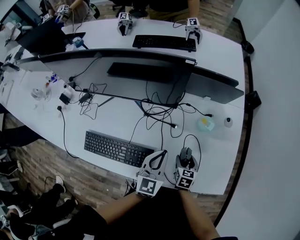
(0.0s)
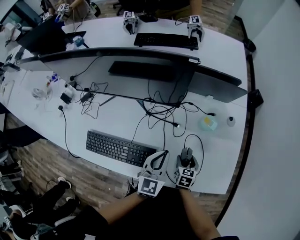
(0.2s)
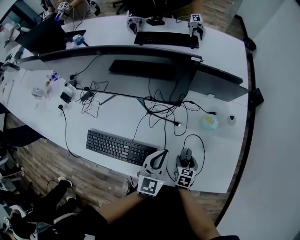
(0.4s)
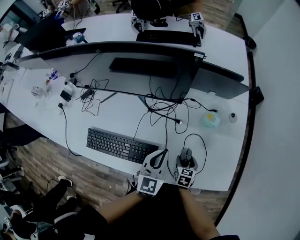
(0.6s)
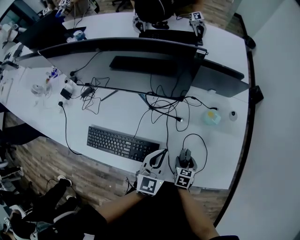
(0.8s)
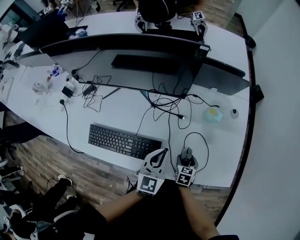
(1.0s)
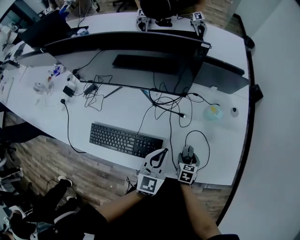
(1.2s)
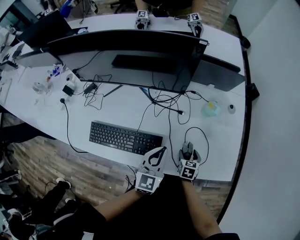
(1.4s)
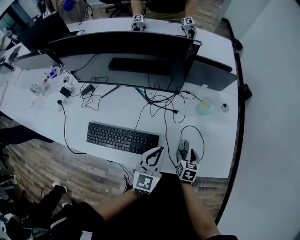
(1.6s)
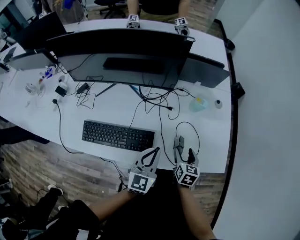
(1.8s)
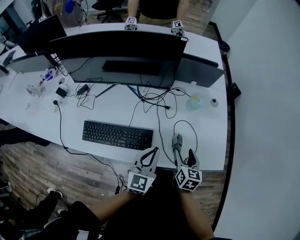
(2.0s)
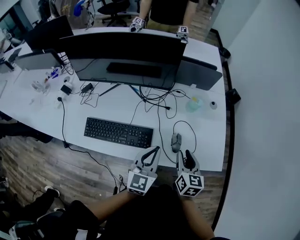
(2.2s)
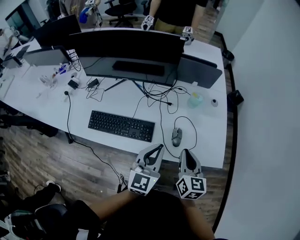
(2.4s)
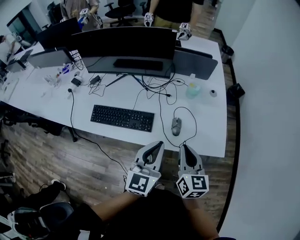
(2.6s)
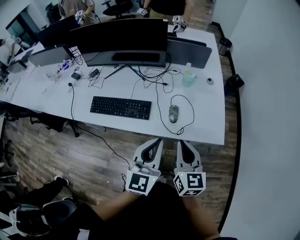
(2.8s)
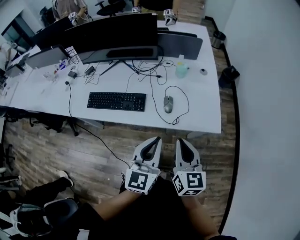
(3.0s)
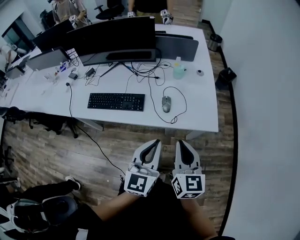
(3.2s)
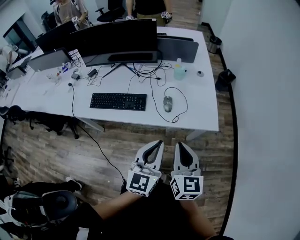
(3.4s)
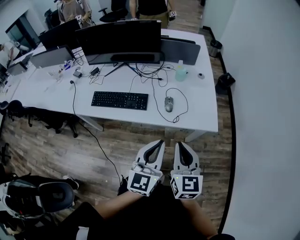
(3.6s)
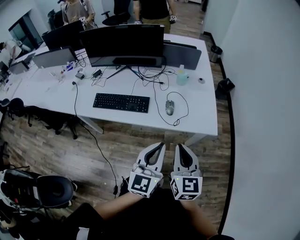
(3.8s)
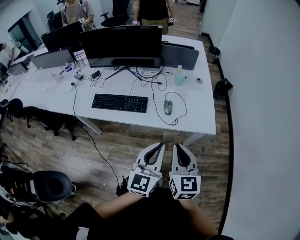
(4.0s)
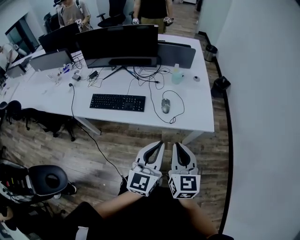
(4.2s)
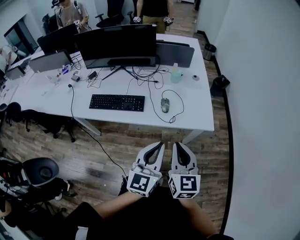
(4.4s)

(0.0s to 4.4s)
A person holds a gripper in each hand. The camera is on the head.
0.0s - 1.4s: Both grippers travel together backward, about 5 cm.
1.4s - 3.0s: The right gripper is displaced upward and backward by approximately 40 cm, angles its fingers upward, by roughly 40 degrees, and closes; the left gripper is displaced backward, upward and to the right by approximately 35 cm.
3.0s - 4.4s: The grippers both shift backward by some 10 cm.

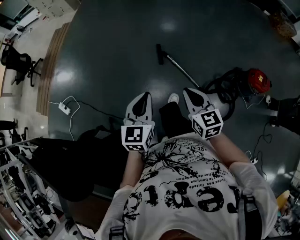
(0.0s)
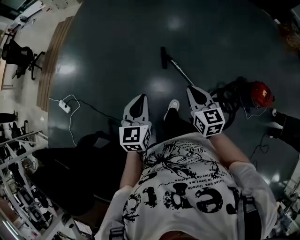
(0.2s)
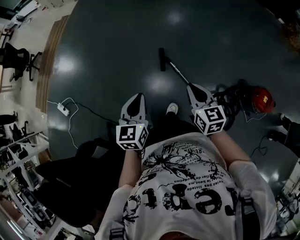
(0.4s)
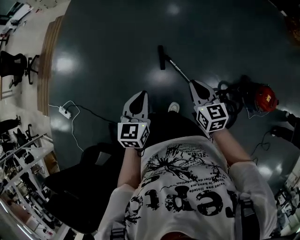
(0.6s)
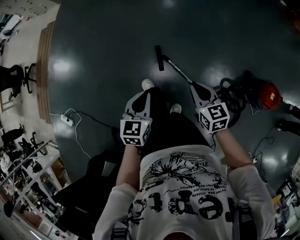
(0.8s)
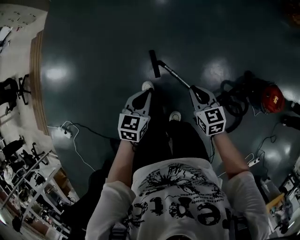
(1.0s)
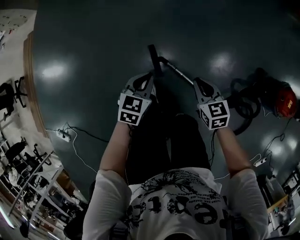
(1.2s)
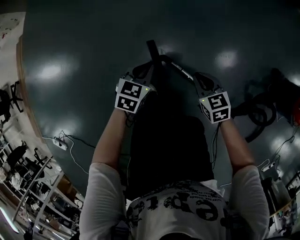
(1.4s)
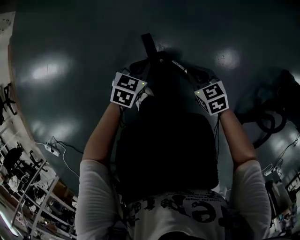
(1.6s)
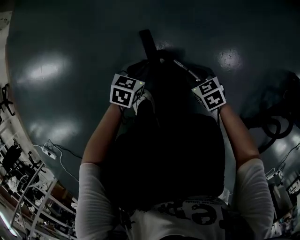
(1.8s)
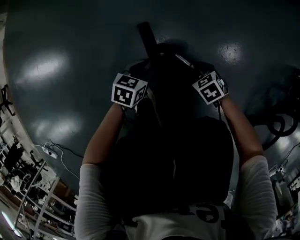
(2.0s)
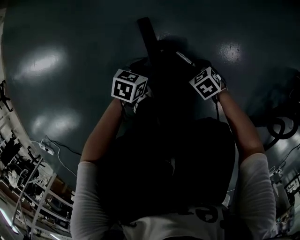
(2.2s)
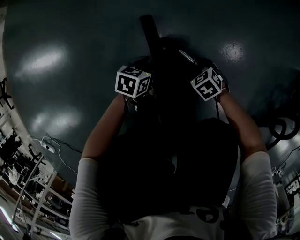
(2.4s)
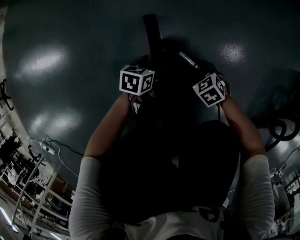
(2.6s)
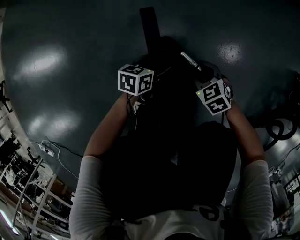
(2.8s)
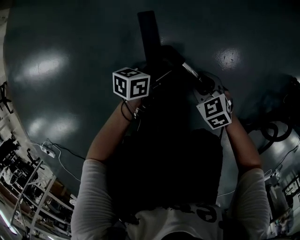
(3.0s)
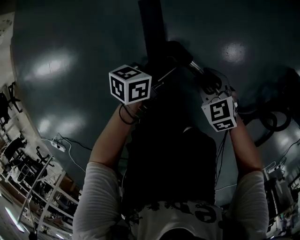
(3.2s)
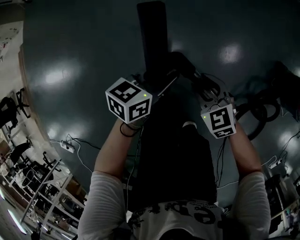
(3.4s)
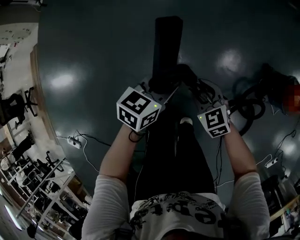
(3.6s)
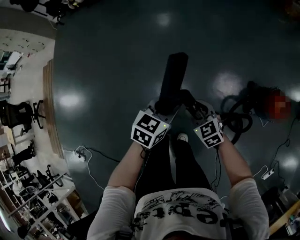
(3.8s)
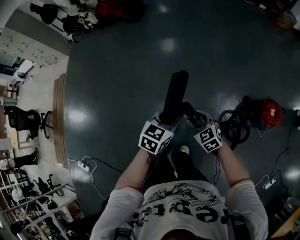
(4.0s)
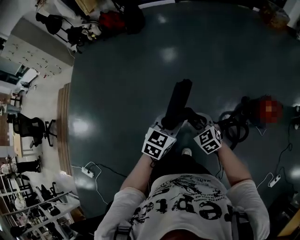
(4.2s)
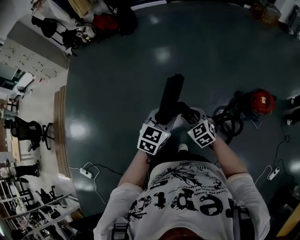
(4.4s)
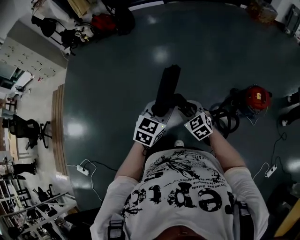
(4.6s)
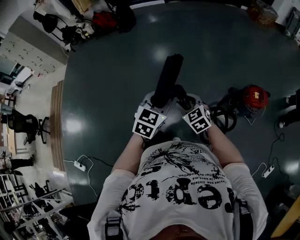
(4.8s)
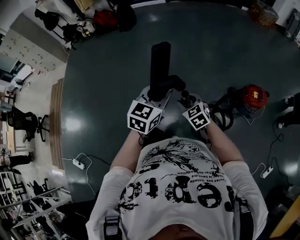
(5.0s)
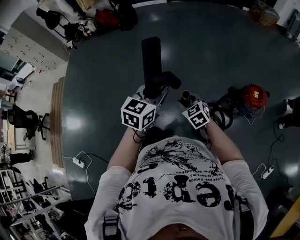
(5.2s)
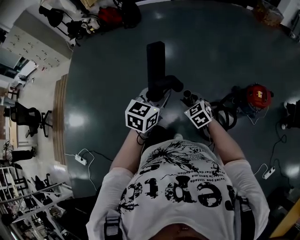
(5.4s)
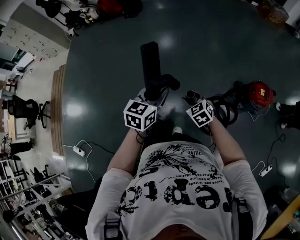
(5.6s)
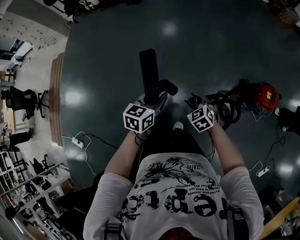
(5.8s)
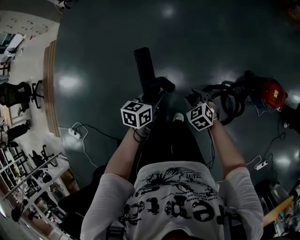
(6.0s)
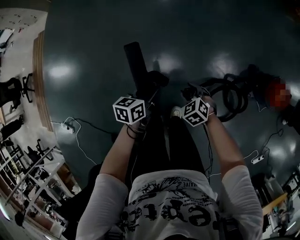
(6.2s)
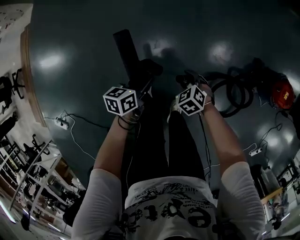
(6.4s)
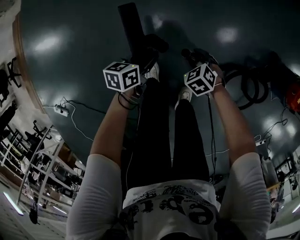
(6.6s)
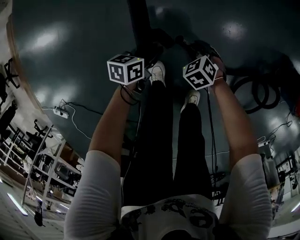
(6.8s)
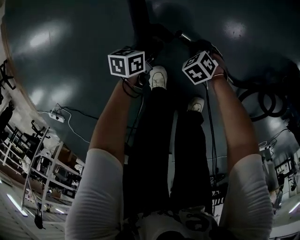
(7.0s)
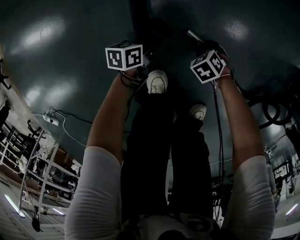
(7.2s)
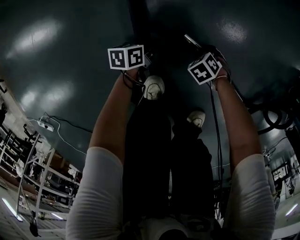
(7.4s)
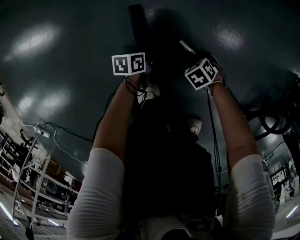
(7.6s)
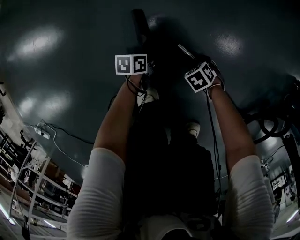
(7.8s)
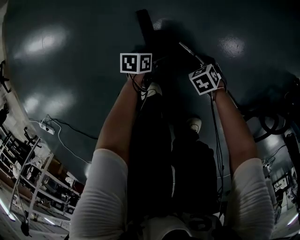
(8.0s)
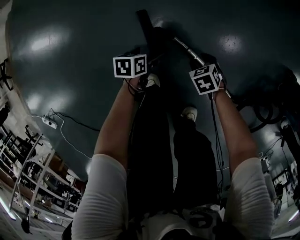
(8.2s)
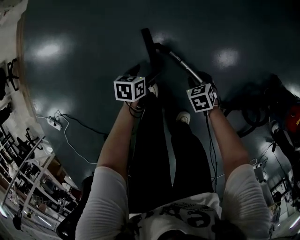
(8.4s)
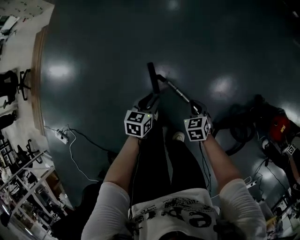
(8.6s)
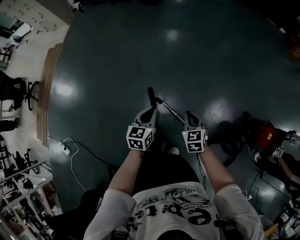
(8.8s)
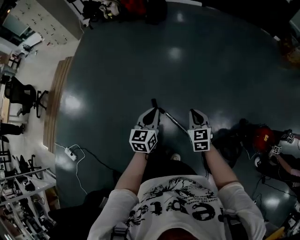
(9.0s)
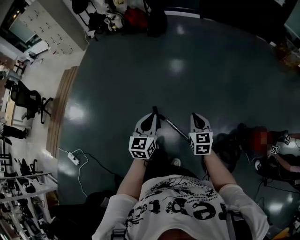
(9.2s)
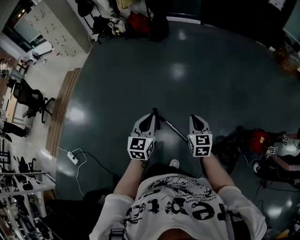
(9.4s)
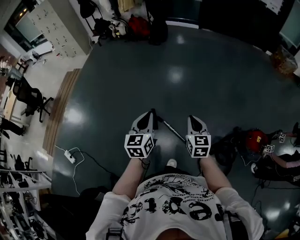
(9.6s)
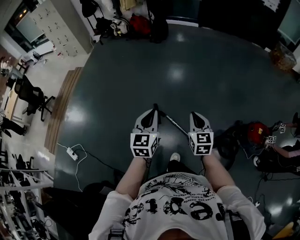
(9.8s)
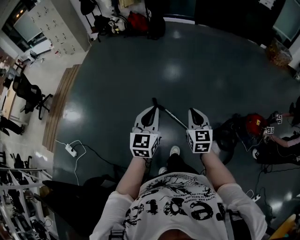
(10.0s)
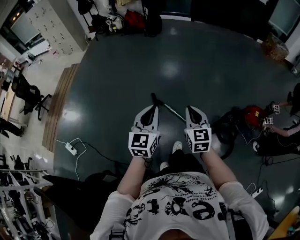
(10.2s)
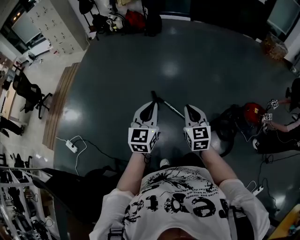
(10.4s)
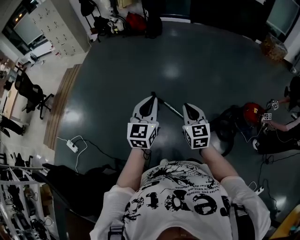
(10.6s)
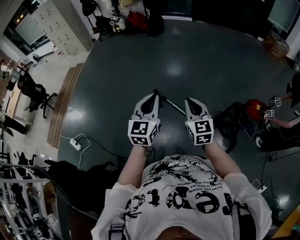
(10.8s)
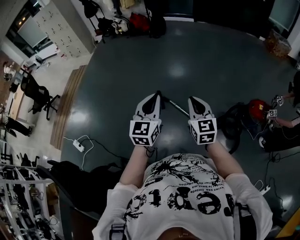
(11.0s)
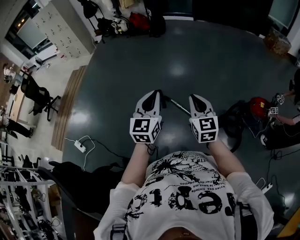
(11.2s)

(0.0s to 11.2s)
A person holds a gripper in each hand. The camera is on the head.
0.0s - 1.6s: Both grippers are carried forward, about 60 cm. The grippers both shift downward by approximately 80 cm. The right gripper turns by approximately 30 degrees. The left gripper tips its fingers downward by some 30 degrees.
1.6s - 3.2s: The right gripper travels downward and back again, roughly 20 cm each way, and opens. The left gripper travels downward and back again, approximately 20 cm each way, swivels about 40 degrees, and opens, then closes once more.
3.2s - 4.8s: Both grippers travel together upward, roughly 70 cm. The left gripper rotates around the line of its fingers by approximately 50 degrees, clockwise from behind.
4.8s - 6.4s: The left gripper travels downward and to the left by about 50 cm, and rotates around the line of its fingers by about 50 degrees, counterclockwise from behind. Meanwhile the right gripper moves downward, roughly 40 cm, and tilts its fingers some 30 degrees downward.
6.4s - 8.0s: The two grippers go about 50 cm downward. The left gripper swivels approximately 20 degrees, and opens.
8.0s - 9.6s: Both grippers travel together upward, some 1 m. The left gripper tilts its fingers roughly 40 degrees upward, and closes, while the right gripper tips its fingers upward by about 60 degrees, and closes up.
9.6s - 11.2s: Both grippers travel together backward, roughly 25 cm.

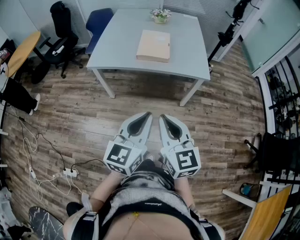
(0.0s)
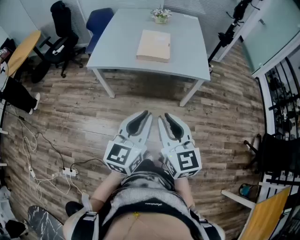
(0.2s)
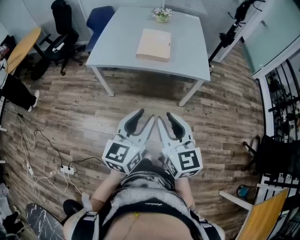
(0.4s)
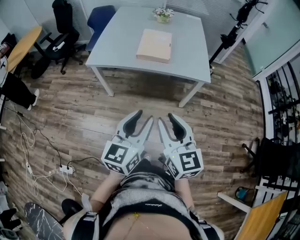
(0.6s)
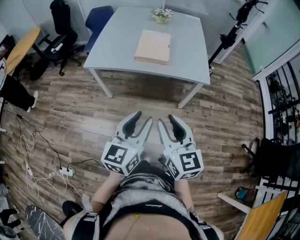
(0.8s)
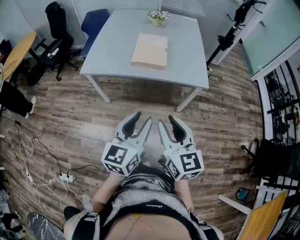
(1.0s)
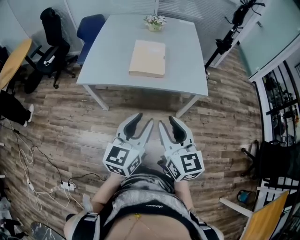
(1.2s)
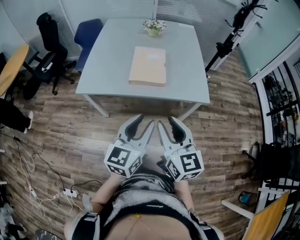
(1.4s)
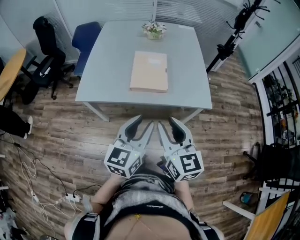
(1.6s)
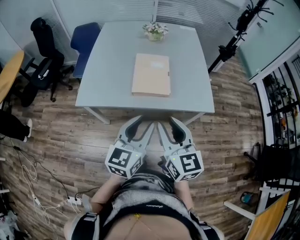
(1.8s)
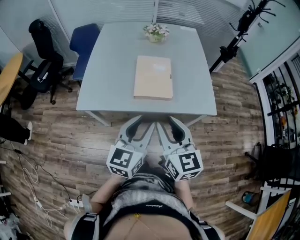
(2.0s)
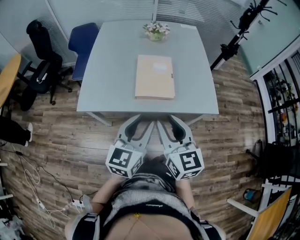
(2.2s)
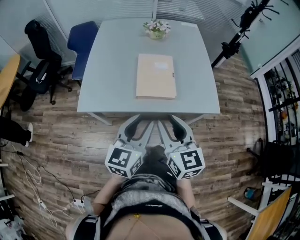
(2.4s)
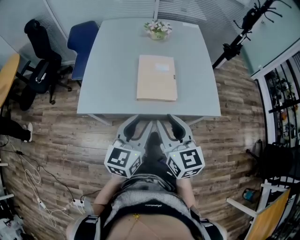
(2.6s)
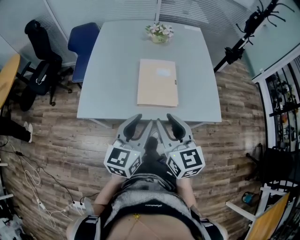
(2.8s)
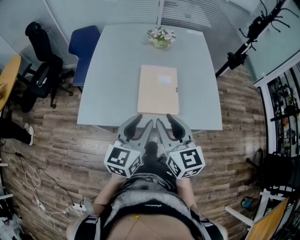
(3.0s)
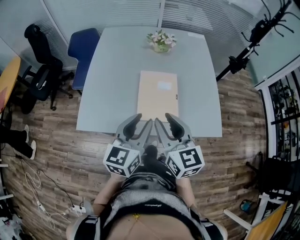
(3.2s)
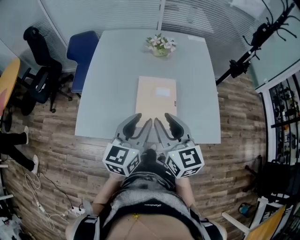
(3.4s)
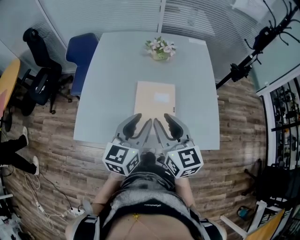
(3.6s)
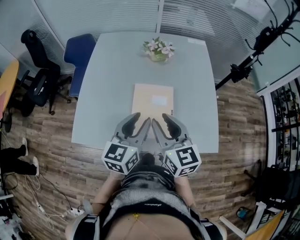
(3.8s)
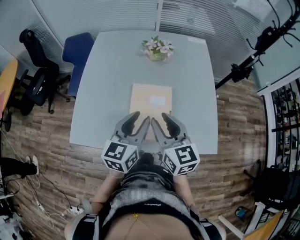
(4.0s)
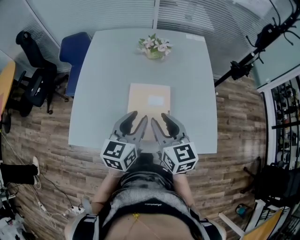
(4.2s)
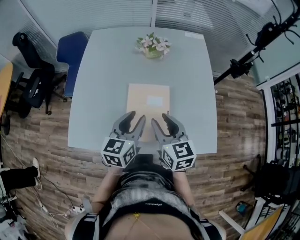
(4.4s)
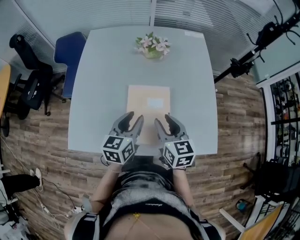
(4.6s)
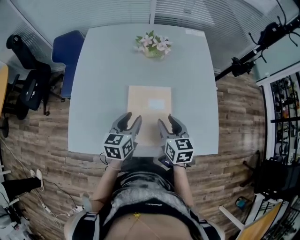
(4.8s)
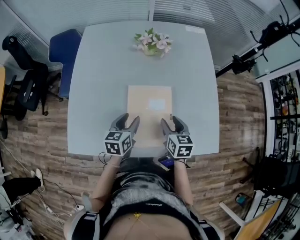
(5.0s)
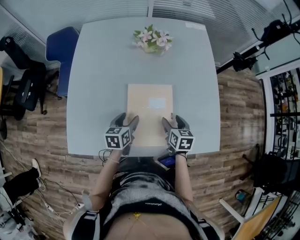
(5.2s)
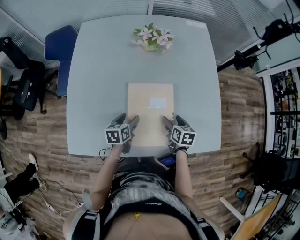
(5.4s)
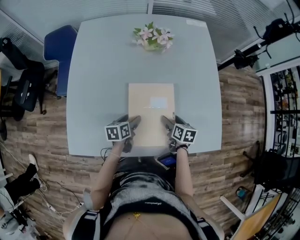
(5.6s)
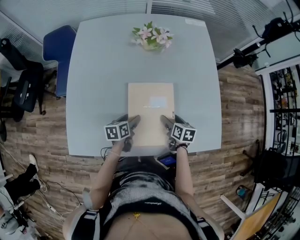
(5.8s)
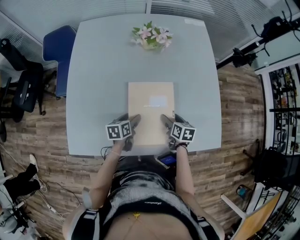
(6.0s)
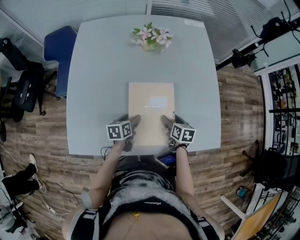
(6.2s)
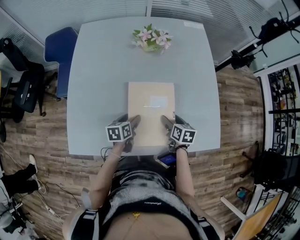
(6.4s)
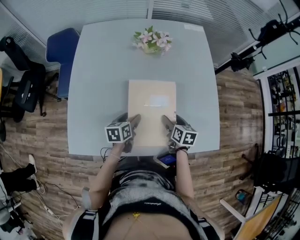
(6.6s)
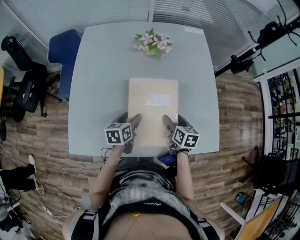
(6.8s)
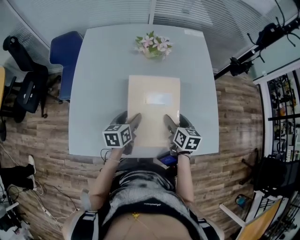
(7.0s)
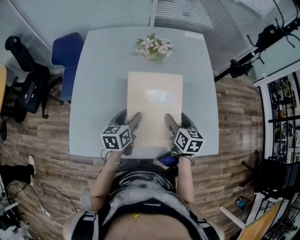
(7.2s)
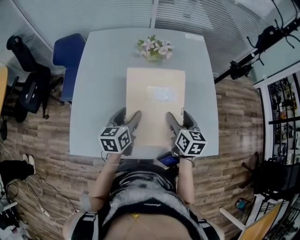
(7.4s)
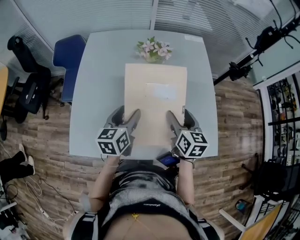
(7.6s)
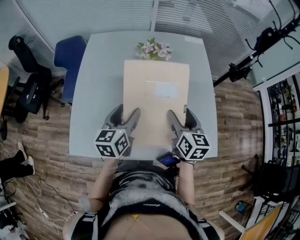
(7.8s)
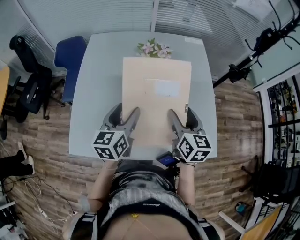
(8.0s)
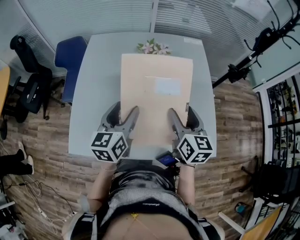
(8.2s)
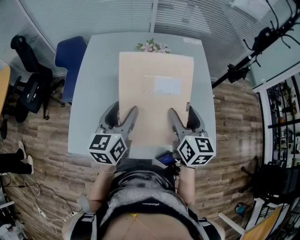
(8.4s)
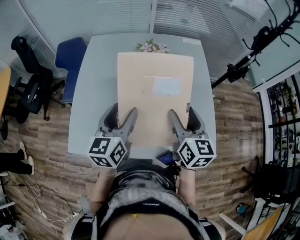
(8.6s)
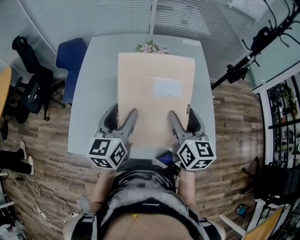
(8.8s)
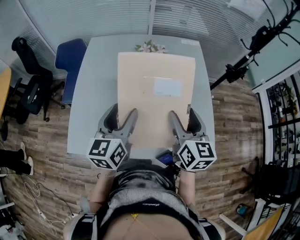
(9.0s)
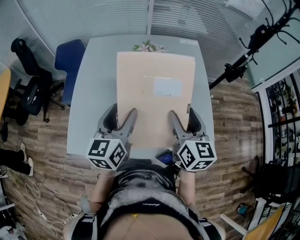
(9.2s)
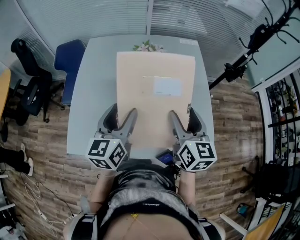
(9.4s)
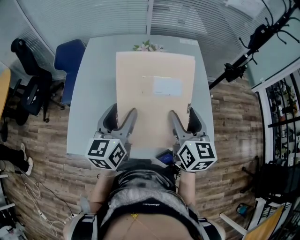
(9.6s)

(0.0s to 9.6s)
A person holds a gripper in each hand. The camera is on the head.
0.0s - 1.6s: The grippers both shift forward by roughly 25 cm. The left gripper opens; the right gripper opens up.
1.6s - 3.2s: Both grippers move forward, roughly 25 cm.
3.2s - 4.8s: The right gripper is displaced forward, downward and to the right by some 25 cm, and turns by about 20 degrees; the left gripper heads forward and downward, covering roughly 25 cm, and swivels roughly 20 degrees.
4.8s - 6.4s: The two grippers go about 15 cm downward. The right gripper rotates some 20 degrees, and opens its fingers. The left gripper rotates about 20 degrees, and opens.
6.4s - 8.0s: Both grippers travel together upward, roughly 25 cm. The left gripper swivels roughly 40 degrees. The right gripper turns by roughly 30 degrees.
8.0s - 9.6s: Both grippers move upward, about 5 cm.
